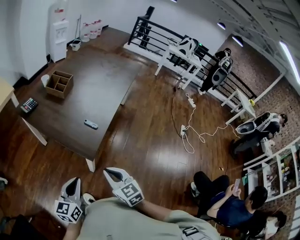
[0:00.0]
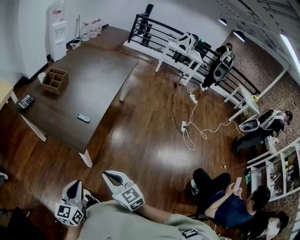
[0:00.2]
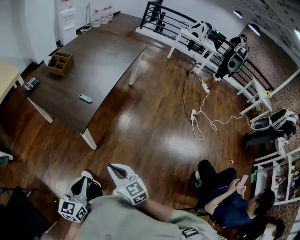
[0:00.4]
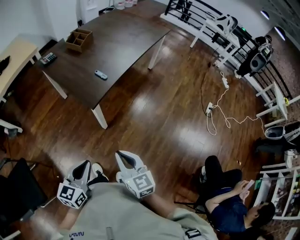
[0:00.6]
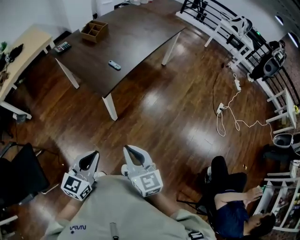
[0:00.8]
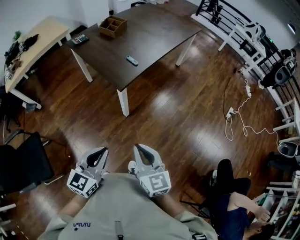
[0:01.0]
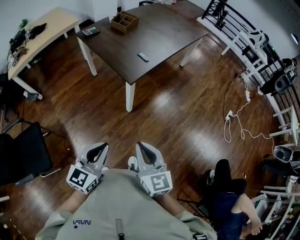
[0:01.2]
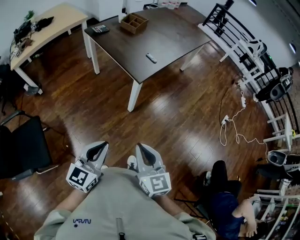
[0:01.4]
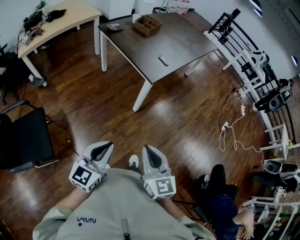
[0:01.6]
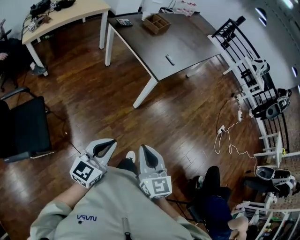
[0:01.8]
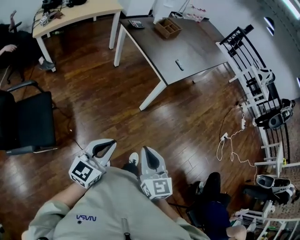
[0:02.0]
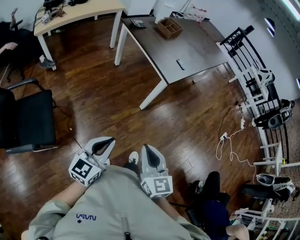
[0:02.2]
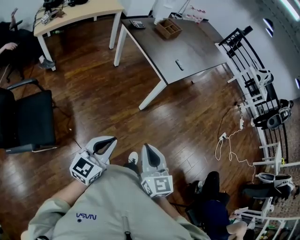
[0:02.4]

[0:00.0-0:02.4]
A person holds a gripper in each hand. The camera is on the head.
0:00.0 to 0:01.2: The two grippers go approximately 20 cm backward.
0:01.2 to 0:02.4: Both grippers travel together to the left and backward, some 15 cm.

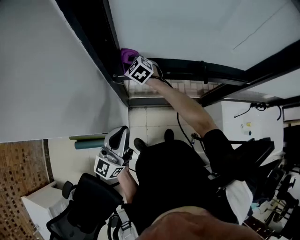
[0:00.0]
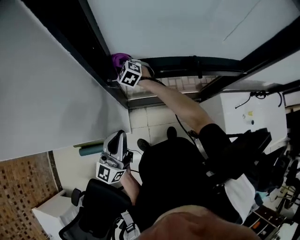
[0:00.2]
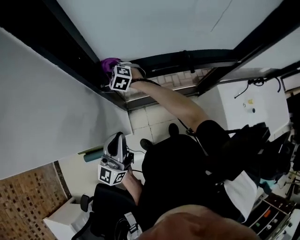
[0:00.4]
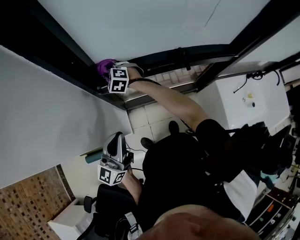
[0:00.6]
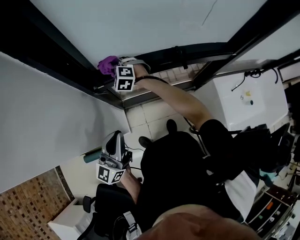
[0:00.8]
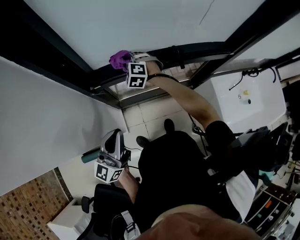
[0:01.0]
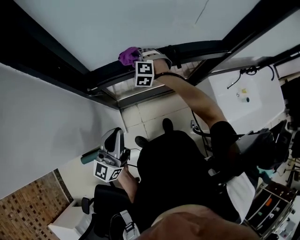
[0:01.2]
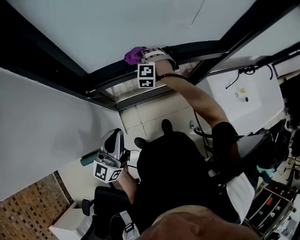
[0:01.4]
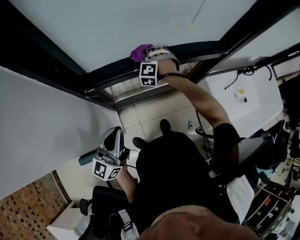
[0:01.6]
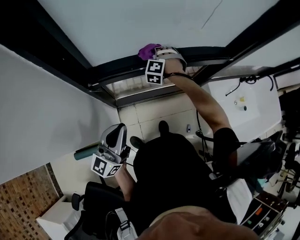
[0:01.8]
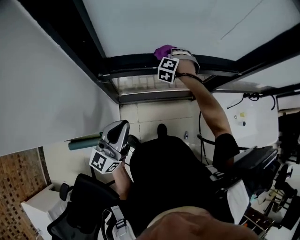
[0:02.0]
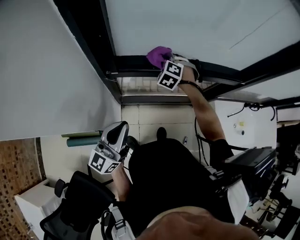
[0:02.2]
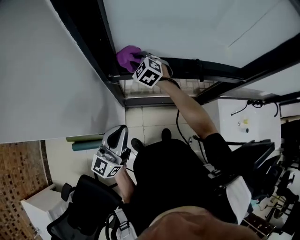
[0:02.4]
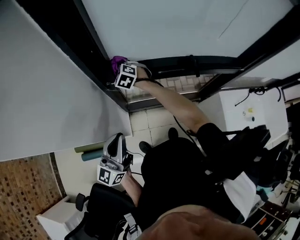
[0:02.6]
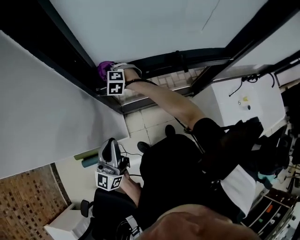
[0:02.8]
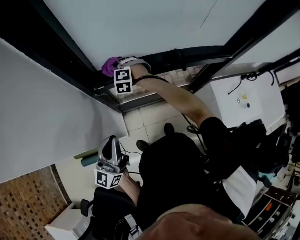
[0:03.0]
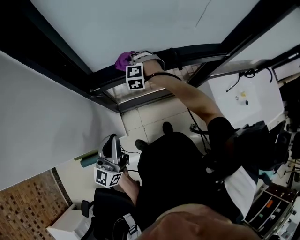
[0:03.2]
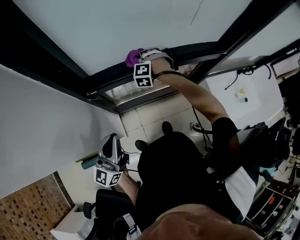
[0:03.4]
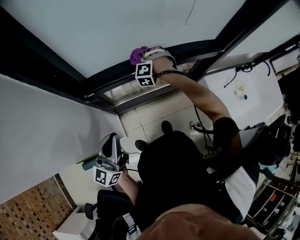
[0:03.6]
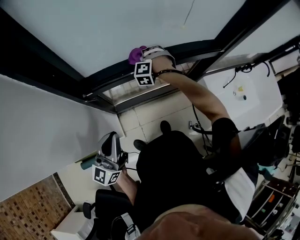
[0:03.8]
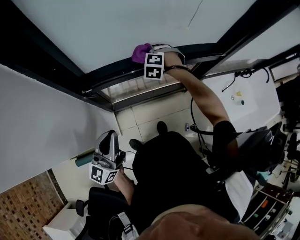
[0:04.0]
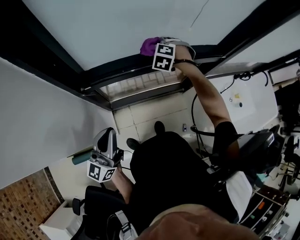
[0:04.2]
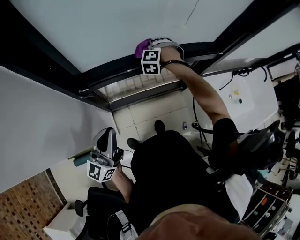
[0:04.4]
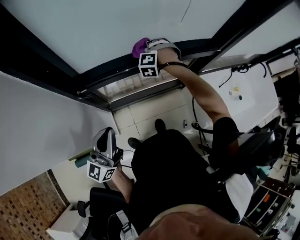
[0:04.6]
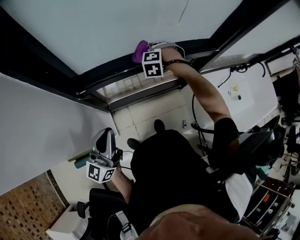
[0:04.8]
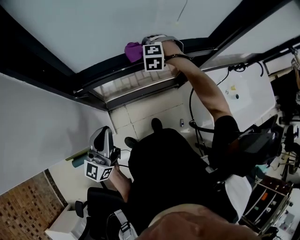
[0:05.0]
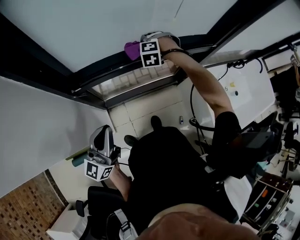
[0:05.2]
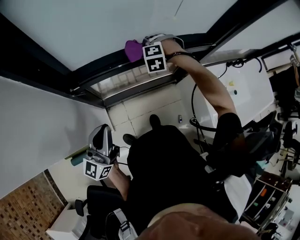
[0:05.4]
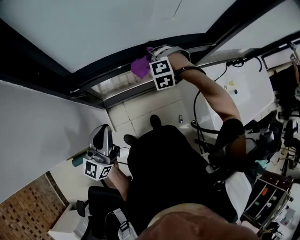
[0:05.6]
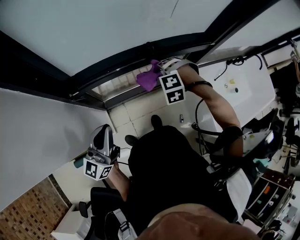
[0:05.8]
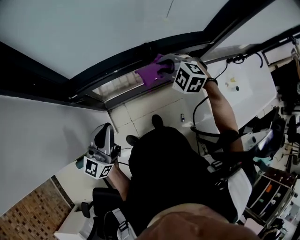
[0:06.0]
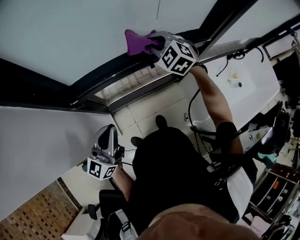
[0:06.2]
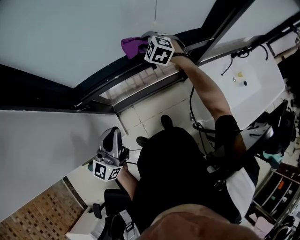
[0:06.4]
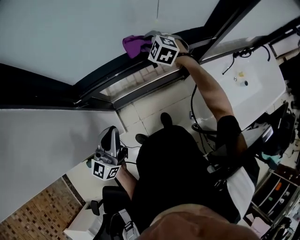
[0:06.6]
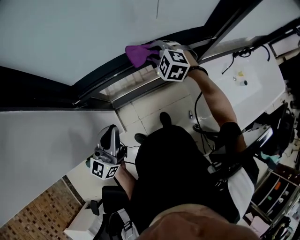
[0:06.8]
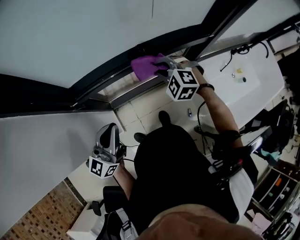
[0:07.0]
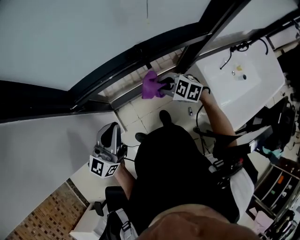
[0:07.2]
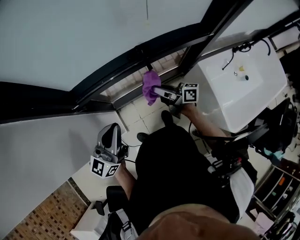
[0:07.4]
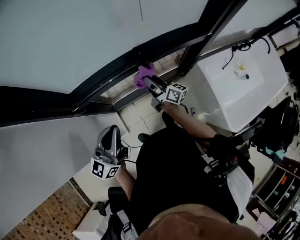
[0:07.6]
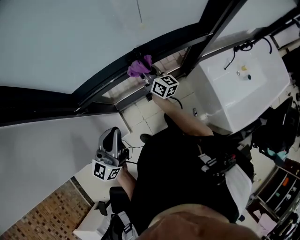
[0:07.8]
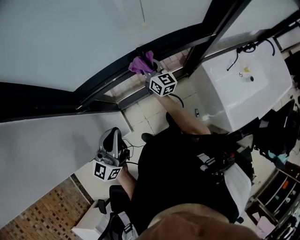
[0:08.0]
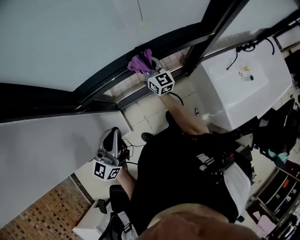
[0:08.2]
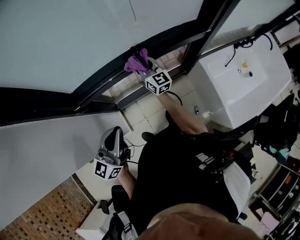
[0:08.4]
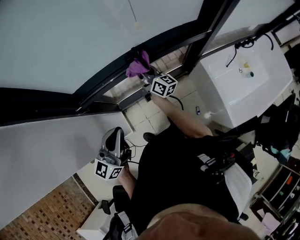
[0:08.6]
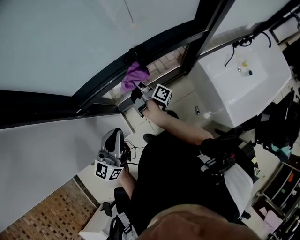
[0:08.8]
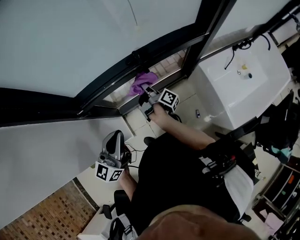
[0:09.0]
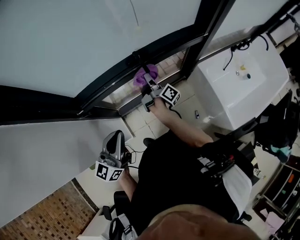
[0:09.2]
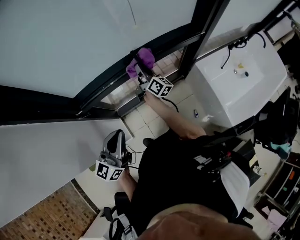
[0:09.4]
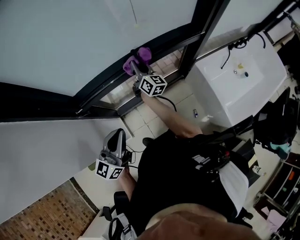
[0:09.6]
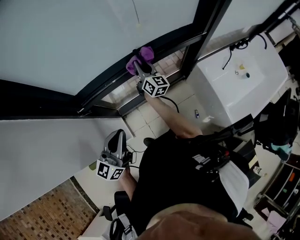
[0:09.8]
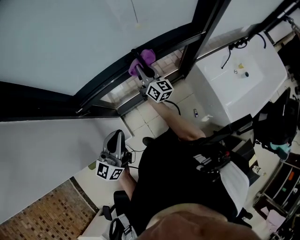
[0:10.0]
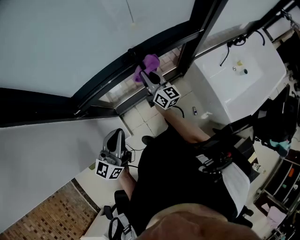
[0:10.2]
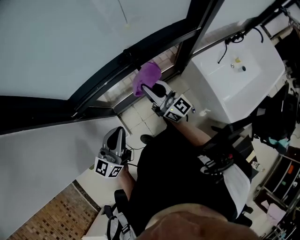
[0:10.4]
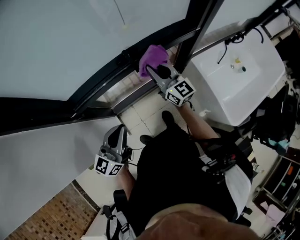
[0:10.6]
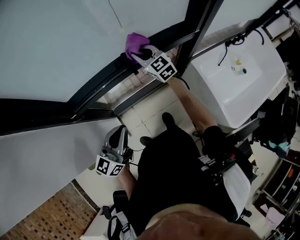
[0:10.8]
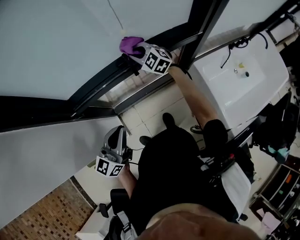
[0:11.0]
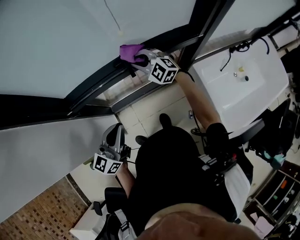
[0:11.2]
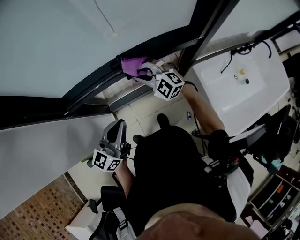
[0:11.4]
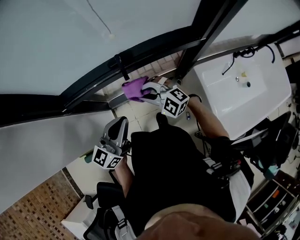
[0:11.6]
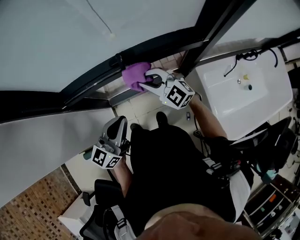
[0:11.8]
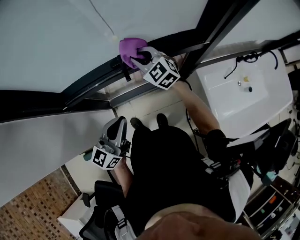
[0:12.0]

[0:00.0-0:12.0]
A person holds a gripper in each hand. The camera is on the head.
0:00.0 to 0:01.6: The left gripper ends up some 10 cm from where it was. Meanwhile the right gripper changes place by roughly 30 cm, and changes its angle by roughly 60 degrees.
0:01.6 to 0:03.0: The left gripper changes place by about 10 cm, while the right gripper goes upward and returns, roughly 5 cm each way, and swivels some 30 degrees.
0:03.0 to 0:04.4: The left gripper is displaced to the right and forward by approximately 5 cm, while the right gripper is displaced to the right and forward by about 25 cm, and changes its angle by approximately 30 degrees.
0:04.4 to 0:06.0: The right gripper heads backward, to the right and upward, covering roughly 20 cm, and turns by some 40 degrees.
0:06.0 to 0:07.6: The left gripper travels to the right by roughly 5 cm, while the right gripper swings forward and backward, approximately 20 cm each way, with 2 reversals, and rolls clockwise, seen from behind, by roughly 90 degrees.
0:07.6 to 0:09.0: The right gripper goes forward and returns, roughly 5 cm each way, and rotates around the line of its fingers by about 40 degrees, clockwise from behind.
0:09.0 to 0:10.4: The right gripper is displaced upward by approximately 15 cm, and rotates around the line of its fingers by approximately 70 degrees, counterclockwise from behind.
0:10.4 to 0:12.0: The left gripper heads to the right, covering some 10 cm; the right gripper goes forward and backward, some 20 cm each way, reversing 2 times, and tilts its fingers about 40 degrees downward.

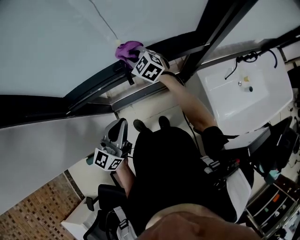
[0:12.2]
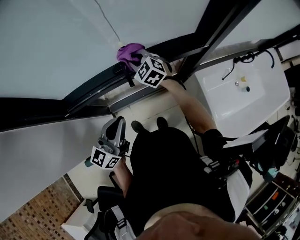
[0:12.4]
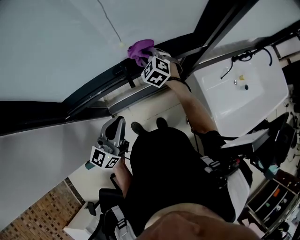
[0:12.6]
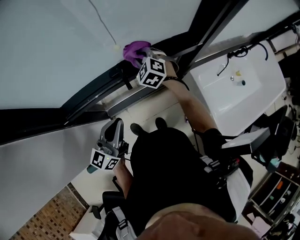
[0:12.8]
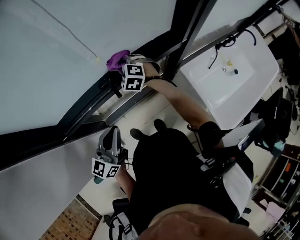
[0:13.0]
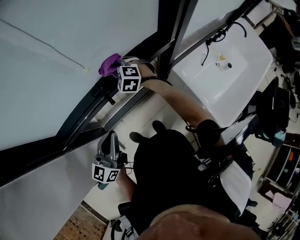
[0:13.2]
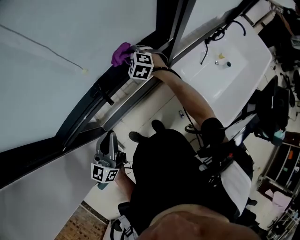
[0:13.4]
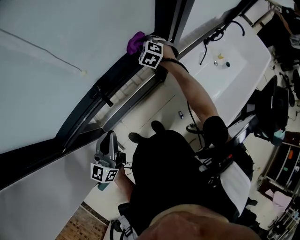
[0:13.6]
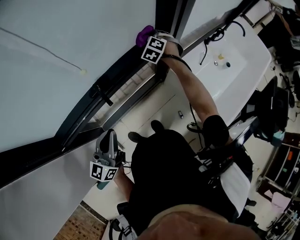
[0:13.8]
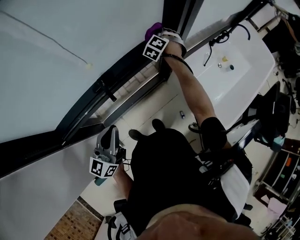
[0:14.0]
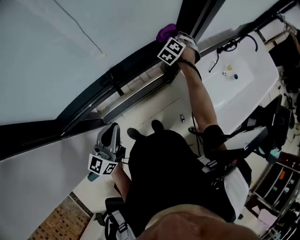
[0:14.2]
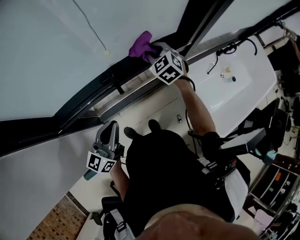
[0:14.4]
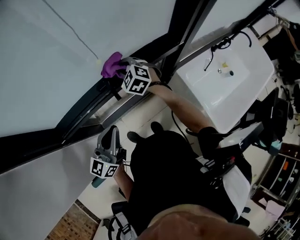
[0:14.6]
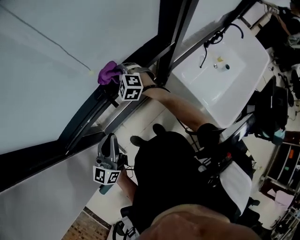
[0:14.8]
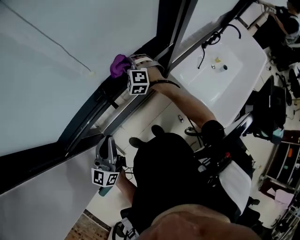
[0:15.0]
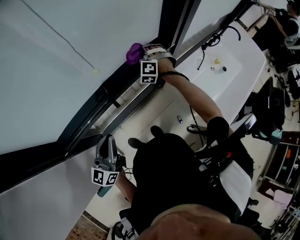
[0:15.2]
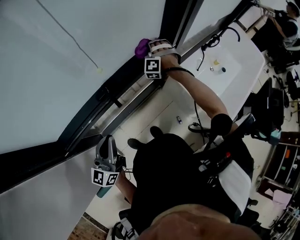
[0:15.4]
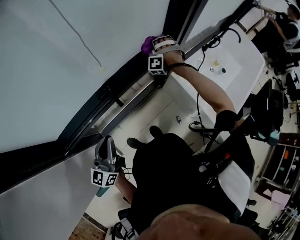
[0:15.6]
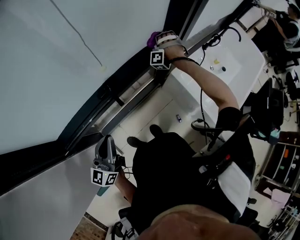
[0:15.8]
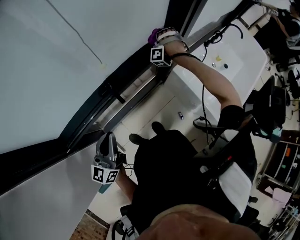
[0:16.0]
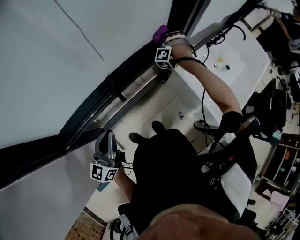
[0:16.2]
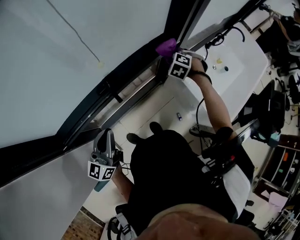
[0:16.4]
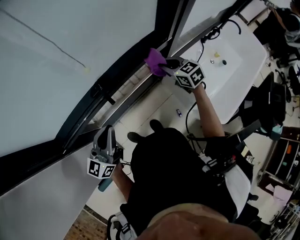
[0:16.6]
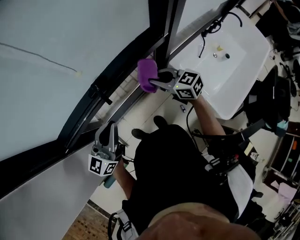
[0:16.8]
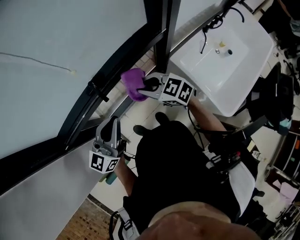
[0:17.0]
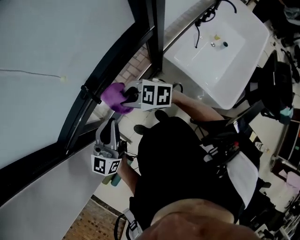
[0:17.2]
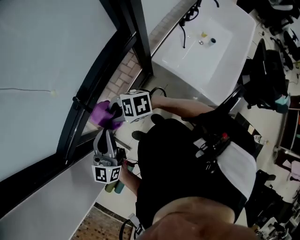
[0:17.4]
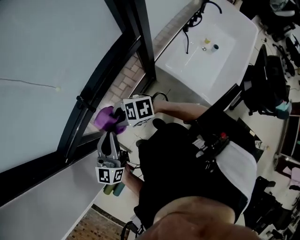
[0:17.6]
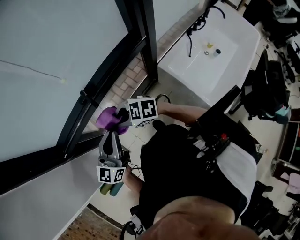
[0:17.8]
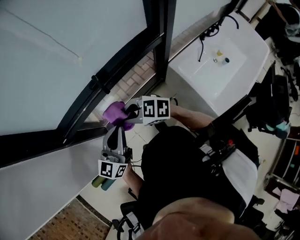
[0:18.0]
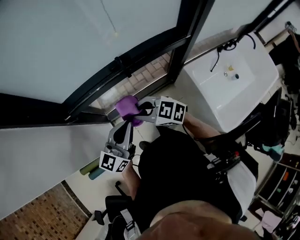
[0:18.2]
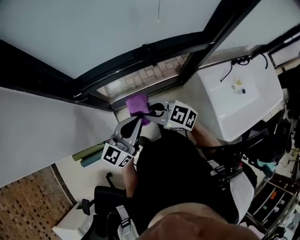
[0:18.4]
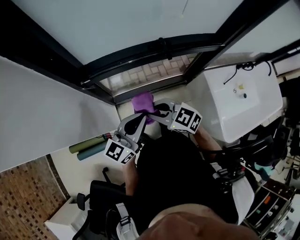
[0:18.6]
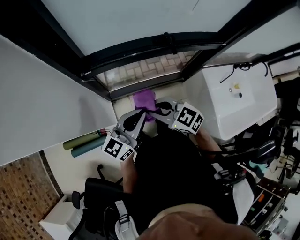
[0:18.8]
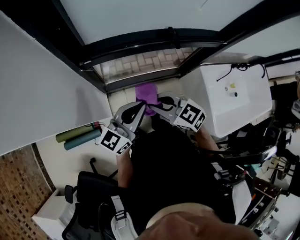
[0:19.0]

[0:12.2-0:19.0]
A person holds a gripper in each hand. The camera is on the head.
0:12.2 to 0:13.6: The right gripper ends up about 25 cm from where it was, and turns by some 40 degrees.
0:15.0 to 0:16.2: The right gripper shifts by roughly 20 cm, and swivels about 60 degrees.
0:16.2 to 0:17.6: The right gripper moves roughly 40 cm, and rotates some 110 degrees. The left gripper changes place by about 15 cm.
0:17.6 to 0:19.0: The grippers both shift to the left by approximately 25 cm.

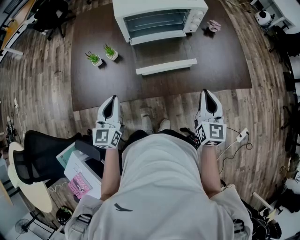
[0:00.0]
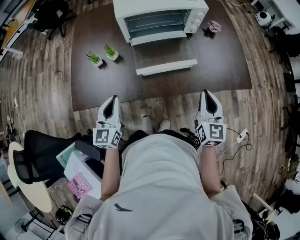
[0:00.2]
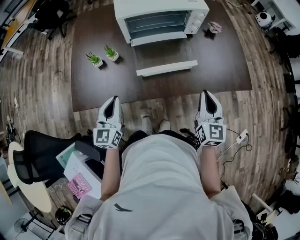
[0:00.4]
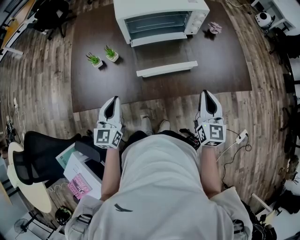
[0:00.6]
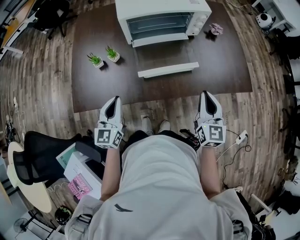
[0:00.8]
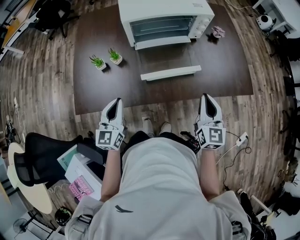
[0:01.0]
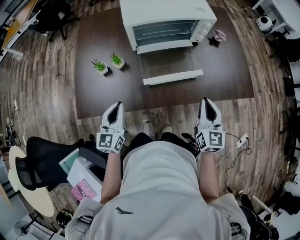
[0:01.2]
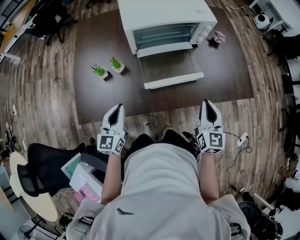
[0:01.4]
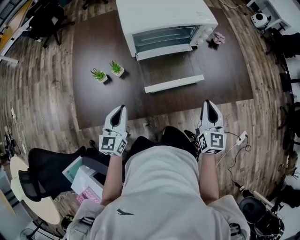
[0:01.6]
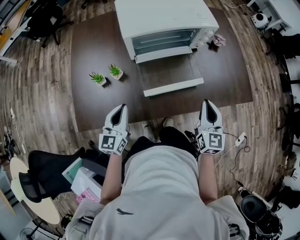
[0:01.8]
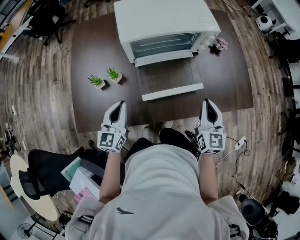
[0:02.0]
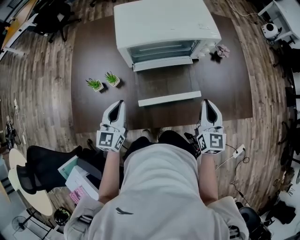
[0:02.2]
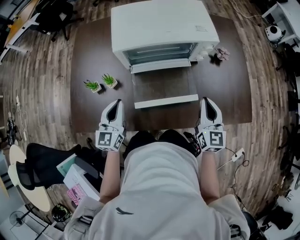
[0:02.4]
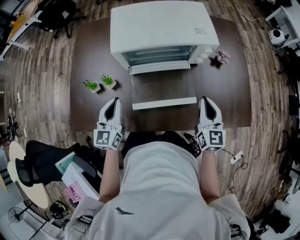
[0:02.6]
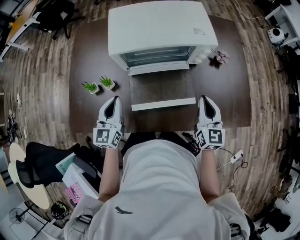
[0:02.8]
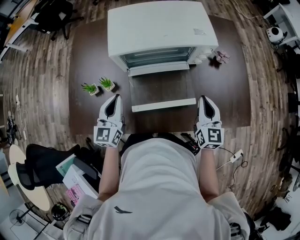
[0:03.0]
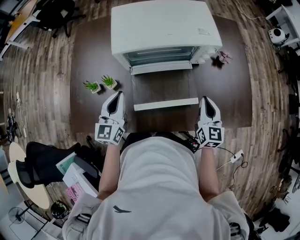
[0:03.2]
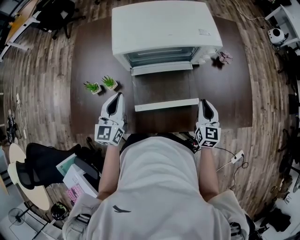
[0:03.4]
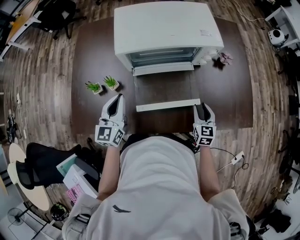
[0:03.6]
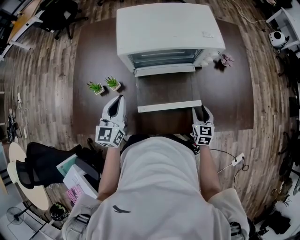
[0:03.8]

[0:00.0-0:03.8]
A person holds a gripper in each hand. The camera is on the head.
0:00.0 to 0:01.2: The grippers stay close to where they were, moving slightly.
0:01.2 to 0:02.6: Both grippers travel together forward, some 15 cm.
0:02.6 to 0:03.8: The right gripper goes approximately 20 cm downward, changes its angle by some 20 degrees, and opens its fingers.
